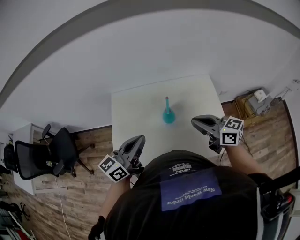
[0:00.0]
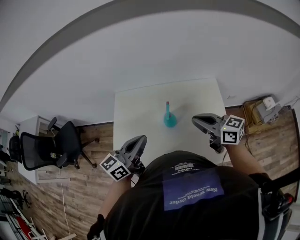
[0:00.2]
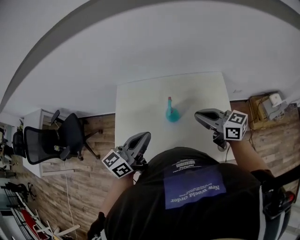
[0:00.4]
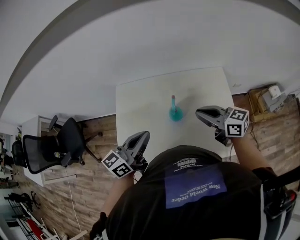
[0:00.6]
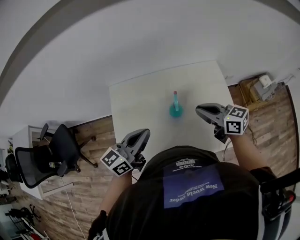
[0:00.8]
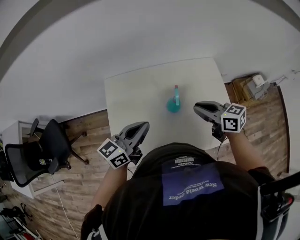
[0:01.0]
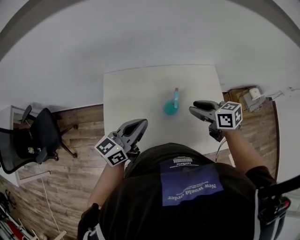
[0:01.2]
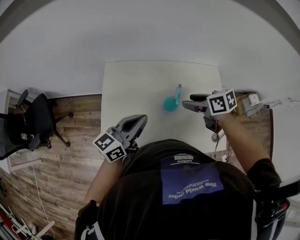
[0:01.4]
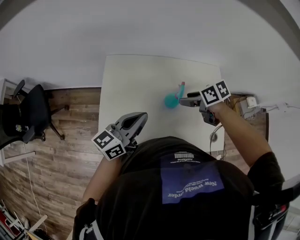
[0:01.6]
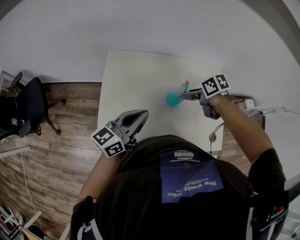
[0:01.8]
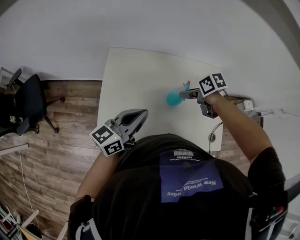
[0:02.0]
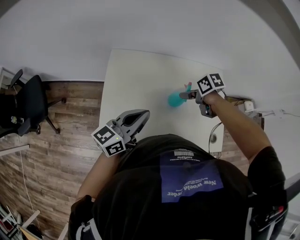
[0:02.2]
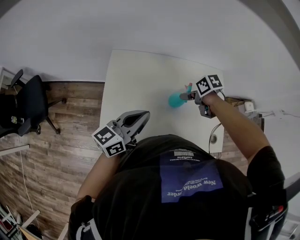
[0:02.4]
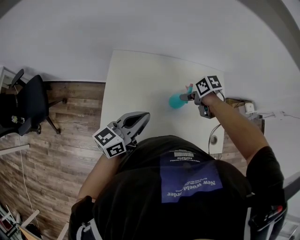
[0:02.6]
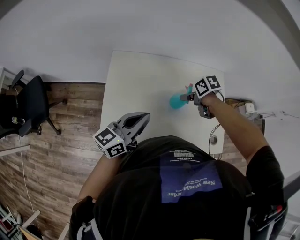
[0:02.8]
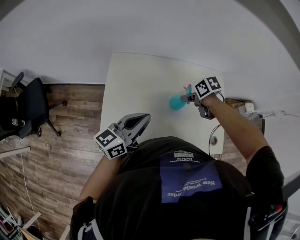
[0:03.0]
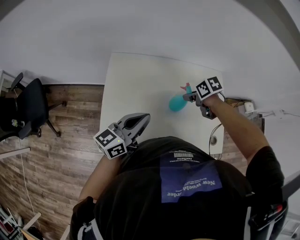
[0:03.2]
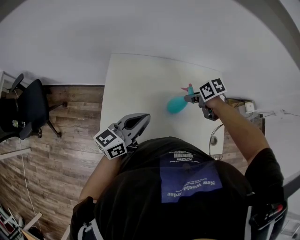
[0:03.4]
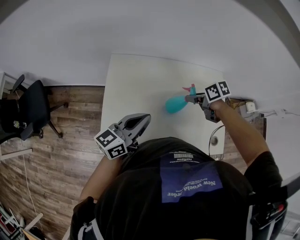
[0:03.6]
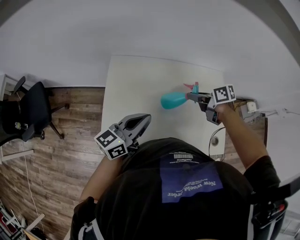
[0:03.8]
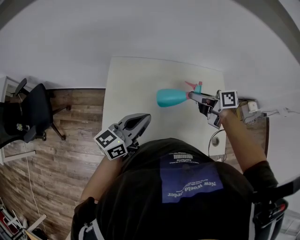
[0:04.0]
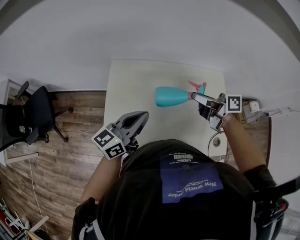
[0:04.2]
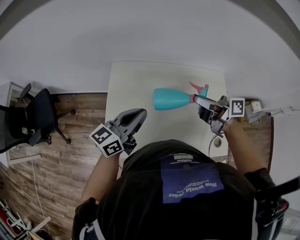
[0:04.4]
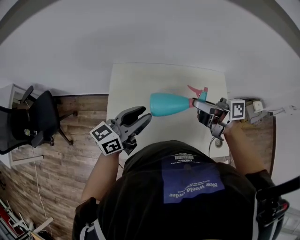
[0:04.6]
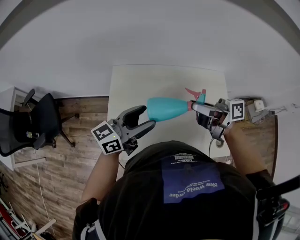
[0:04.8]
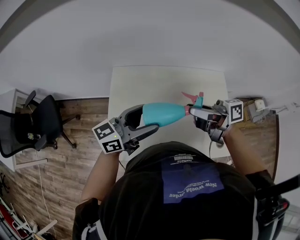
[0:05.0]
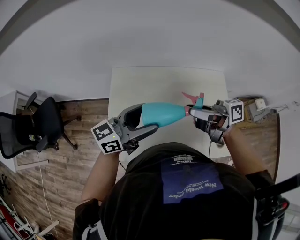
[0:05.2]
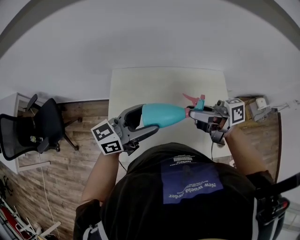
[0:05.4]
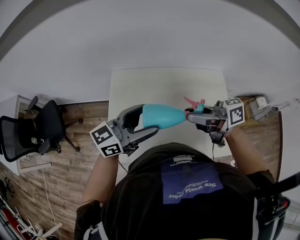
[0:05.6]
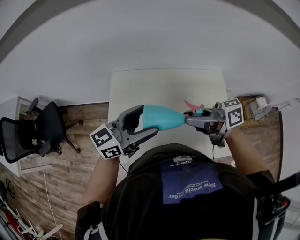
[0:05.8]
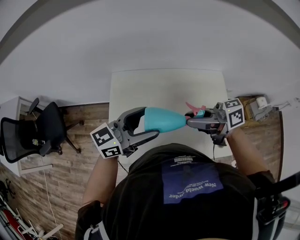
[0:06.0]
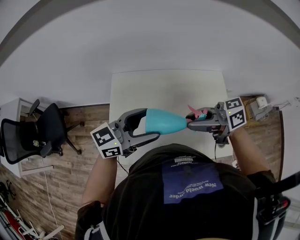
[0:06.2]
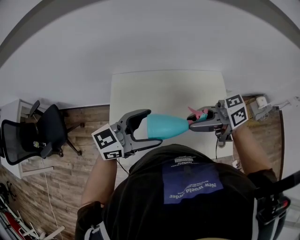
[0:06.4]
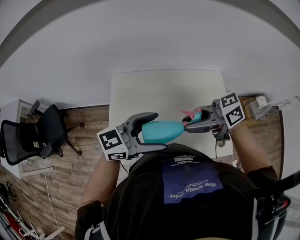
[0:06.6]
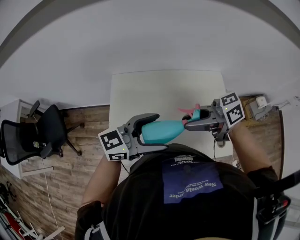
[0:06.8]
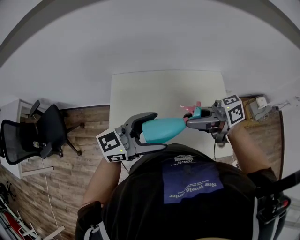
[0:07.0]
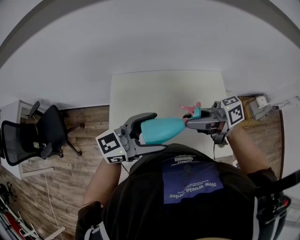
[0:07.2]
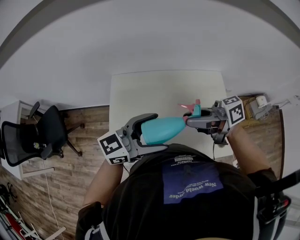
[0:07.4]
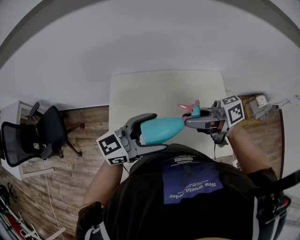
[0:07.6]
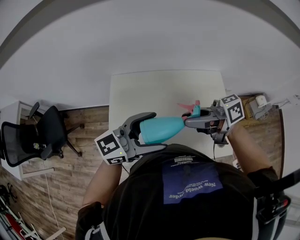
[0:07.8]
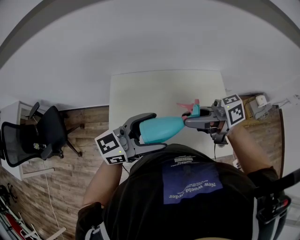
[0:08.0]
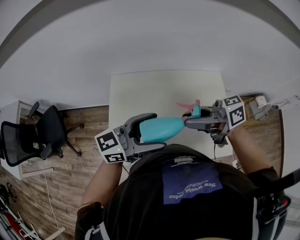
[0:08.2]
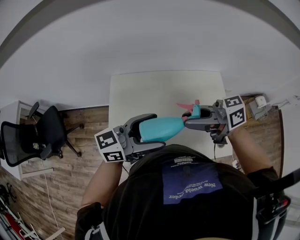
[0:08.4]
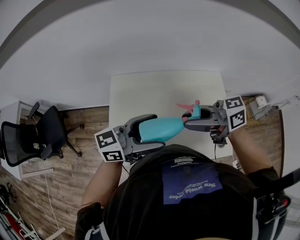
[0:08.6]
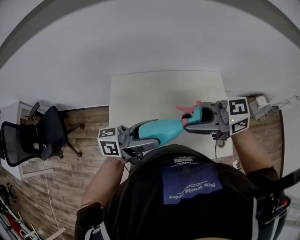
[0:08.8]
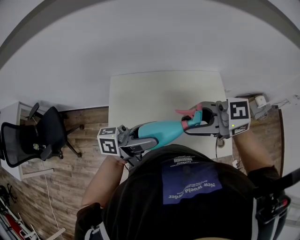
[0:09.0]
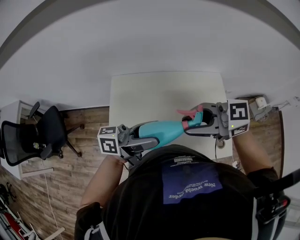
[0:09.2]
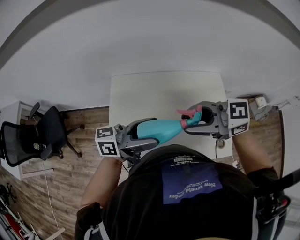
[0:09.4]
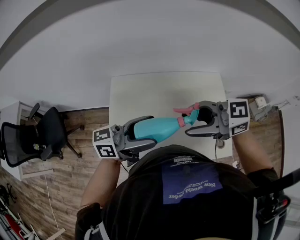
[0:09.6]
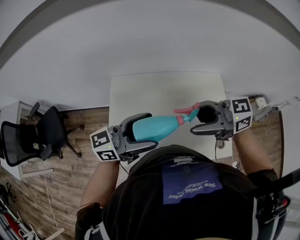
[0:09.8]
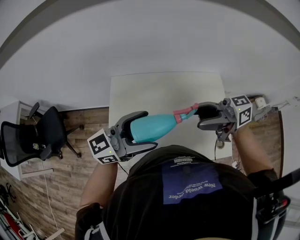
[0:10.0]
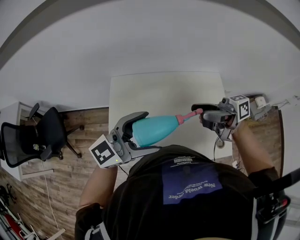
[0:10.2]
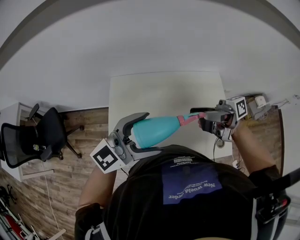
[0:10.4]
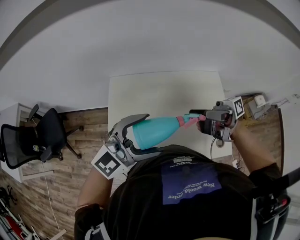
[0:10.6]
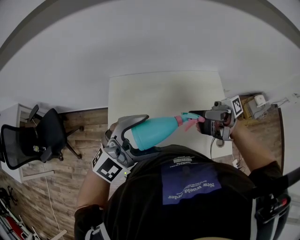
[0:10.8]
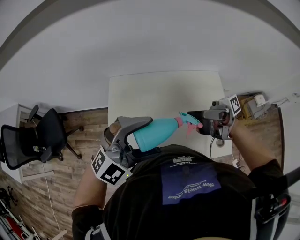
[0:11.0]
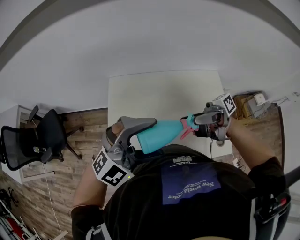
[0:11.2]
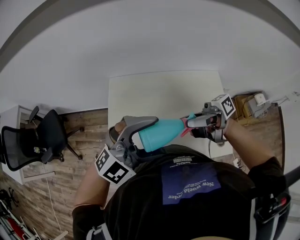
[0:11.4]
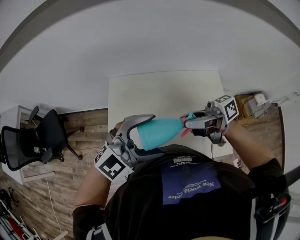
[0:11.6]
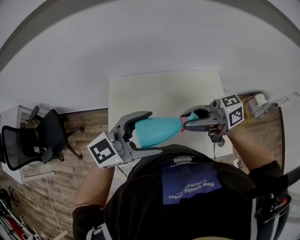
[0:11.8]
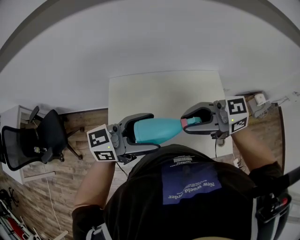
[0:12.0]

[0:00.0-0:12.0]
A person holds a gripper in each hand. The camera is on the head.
0:00.0 to 0:01.6: The left gripper moves forward and downward, approximately 10 cm, while the right gripper travels downward, forward and to the left by roughly 20 cm, points its fingers approximately 40 degrees further downward, and opens.
0:01.6 to 0:03.0: The right gripper shifts approximately 5 cm downward.
0:03.0 to 0:04.4: The right gripper is displaced upward by approximately 20 cm, and angles its fingers upward, by some 60 degrees.
0:04.4 to 0:06.0: The right gripper moves about 10 cm, and rotates some 20 degrees. Meanwhile the left gripper shifts about 5 cm upward, and opens its fingers.
0:06.0 to 0:07.6: The grippers make only small movements.
0:07.6 to 0:09.0: The right gripper shifts by approximately 5 cm, and rotates approximately 40 degrees. The left gripper swivels approximately 40 degrees.
0:09.0 to 0:10.4: The left gripper twists about 60 degrees clockwise, seen from behind, while the right gripper changes place by some 10 cm, twists roughly 50 degrees clockwise, seen from behind, and opens up.
0:10.4 to 0:12.0: The left gripper turns by about 40 degrees, while the right gripper shifts by approximately 10 cm, rotates around the line of its fingers by about 40 degrees, counterclockwise from behind, and closes its fingers.

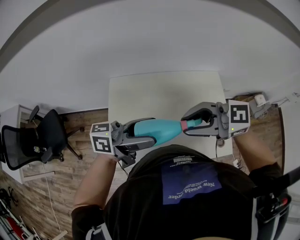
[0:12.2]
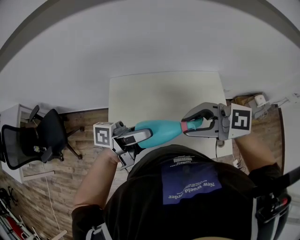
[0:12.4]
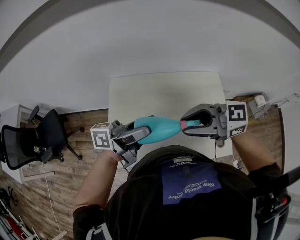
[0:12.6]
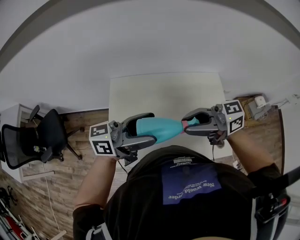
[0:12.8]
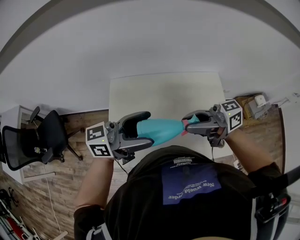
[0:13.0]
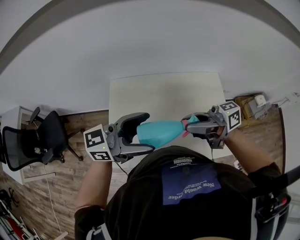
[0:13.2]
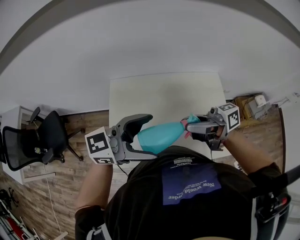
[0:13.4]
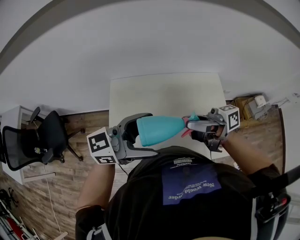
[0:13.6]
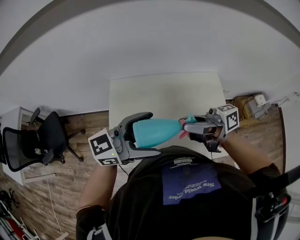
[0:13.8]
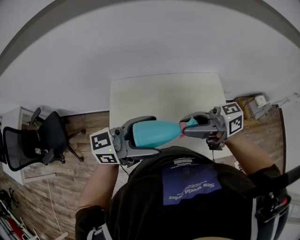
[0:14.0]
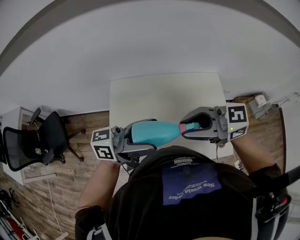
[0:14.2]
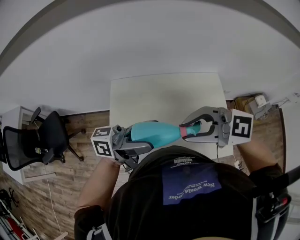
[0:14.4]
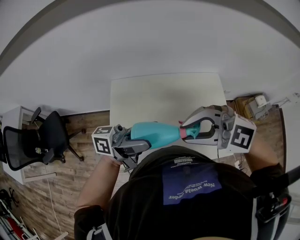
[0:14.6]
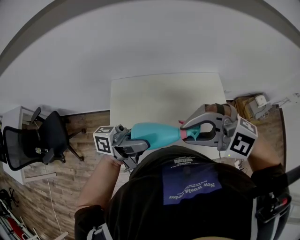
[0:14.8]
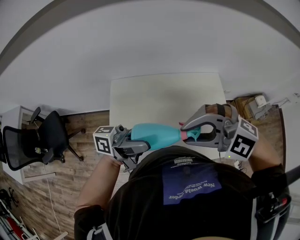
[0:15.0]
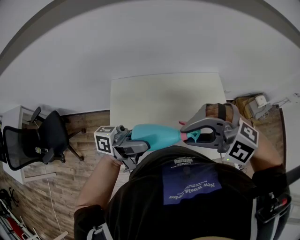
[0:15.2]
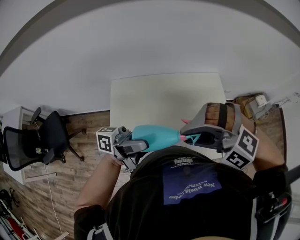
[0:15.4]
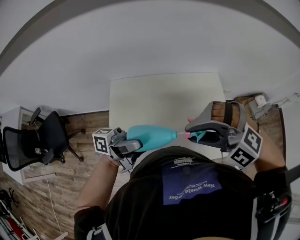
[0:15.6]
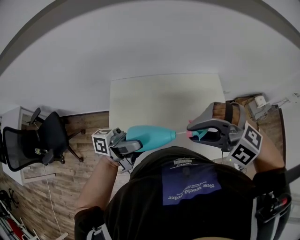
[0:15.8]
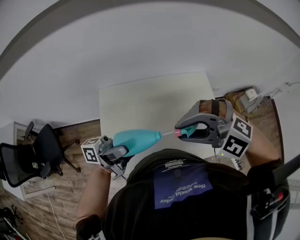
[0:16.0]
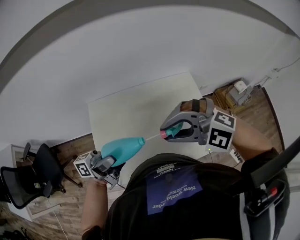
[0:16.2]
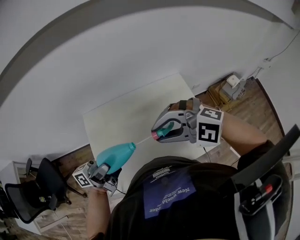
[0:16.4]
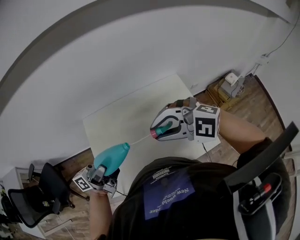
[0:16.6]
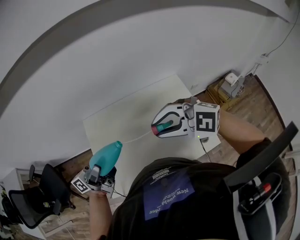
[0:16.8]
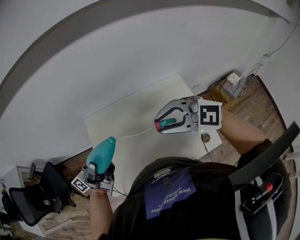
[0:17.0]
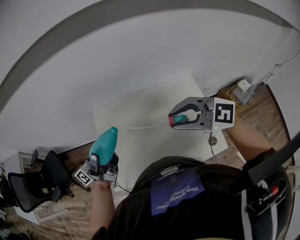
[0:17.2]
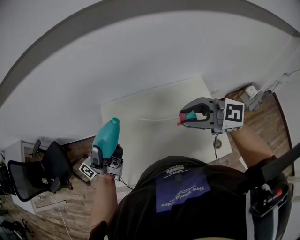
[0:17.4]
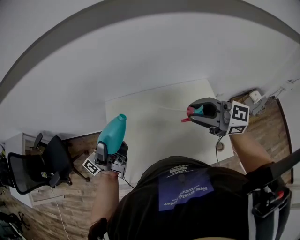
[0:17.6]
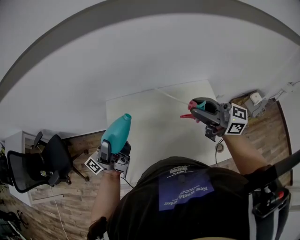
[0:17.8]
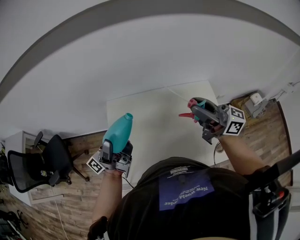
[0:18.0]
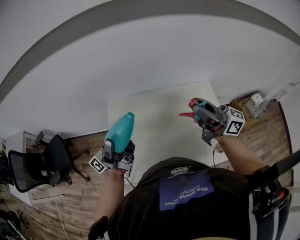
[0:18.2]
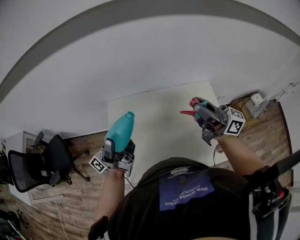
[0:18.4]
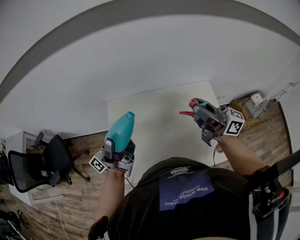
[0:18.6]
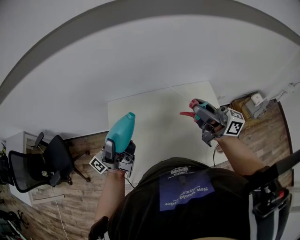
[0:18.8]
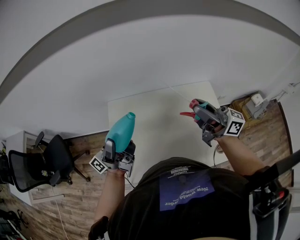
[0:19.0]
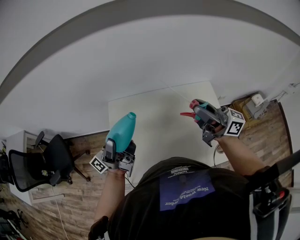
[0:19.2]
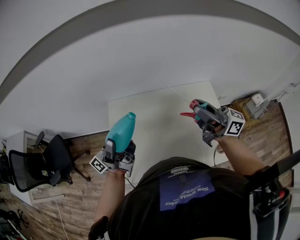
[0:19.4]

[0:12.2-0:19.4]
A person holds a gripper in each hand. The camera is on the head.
0:12.2 to 0:13.6: The left gripper rotates about 30 degrees; the right gripper rolls clockwise, seen from behind, by about 50 degrees.
0:13.6 to 0:15.0: The right gripper moves approximately 5 cm, and twists about 90 degrees counterclockwise, seen from behind, while the left gripper turns by approximately 40 degrees.
0:15.0 to 0:16.6: The left gripper ends up some 5 cm from where it was. Meanwhile the right gripper ends up roughly 10 cm from where it was.
0:16.6 to 0:18.0: The right gripper moves some 10 cm, and points its fingers approximately 50 degrees further upward; the left gripper ends up approximately 10 cm from where it was, and rotates some 30 degrees.
0:18.0 to 0:19.4: The grippers make only small movements.

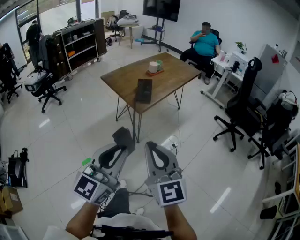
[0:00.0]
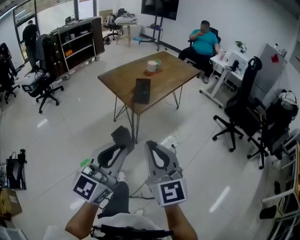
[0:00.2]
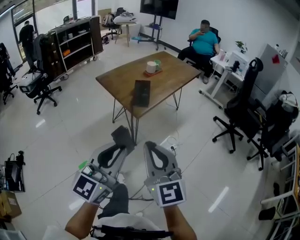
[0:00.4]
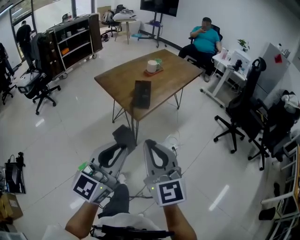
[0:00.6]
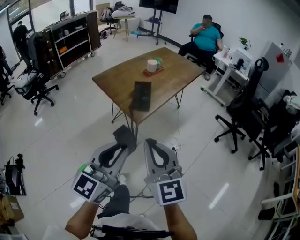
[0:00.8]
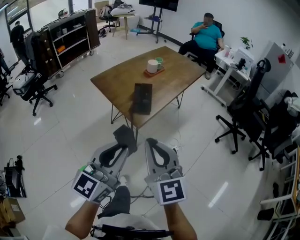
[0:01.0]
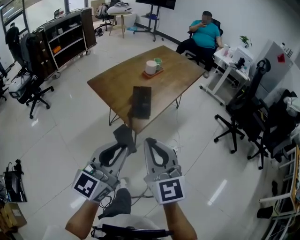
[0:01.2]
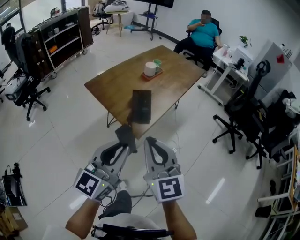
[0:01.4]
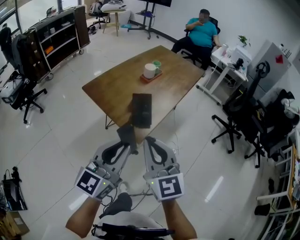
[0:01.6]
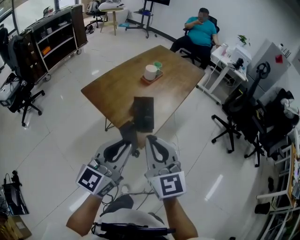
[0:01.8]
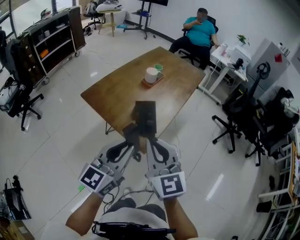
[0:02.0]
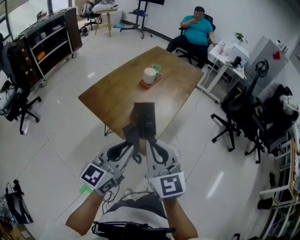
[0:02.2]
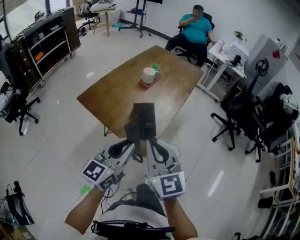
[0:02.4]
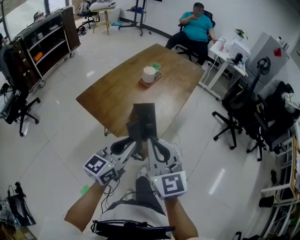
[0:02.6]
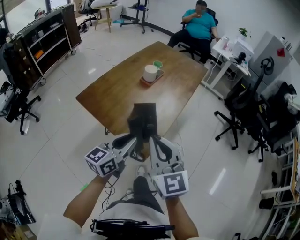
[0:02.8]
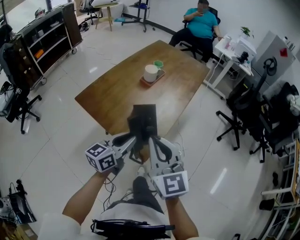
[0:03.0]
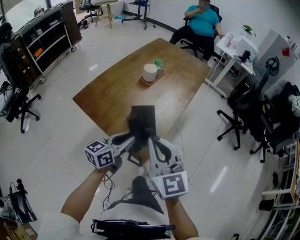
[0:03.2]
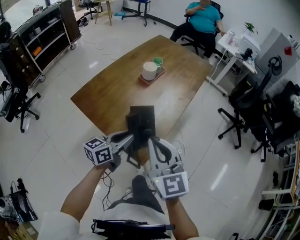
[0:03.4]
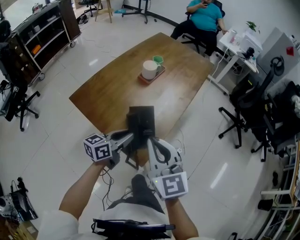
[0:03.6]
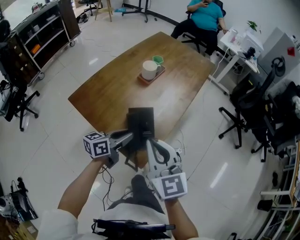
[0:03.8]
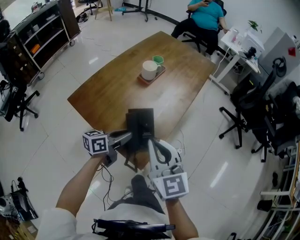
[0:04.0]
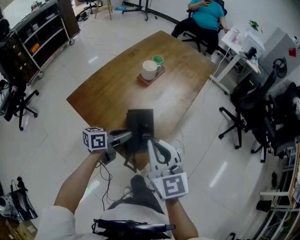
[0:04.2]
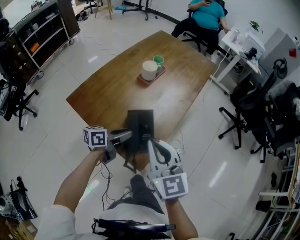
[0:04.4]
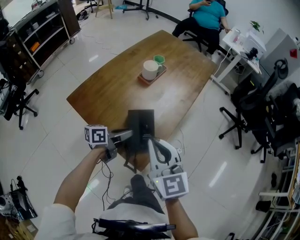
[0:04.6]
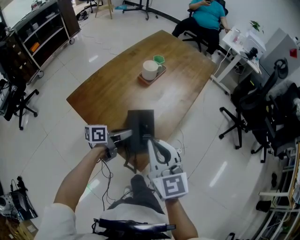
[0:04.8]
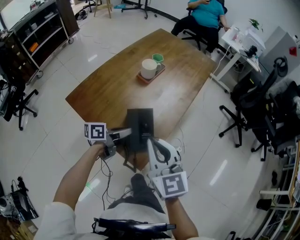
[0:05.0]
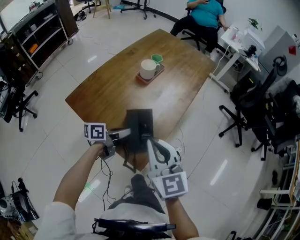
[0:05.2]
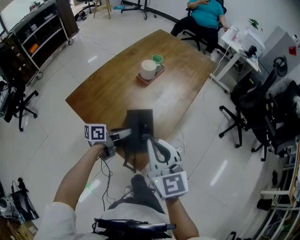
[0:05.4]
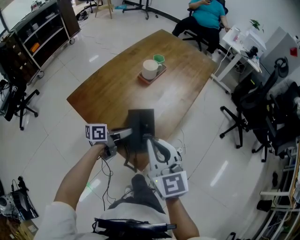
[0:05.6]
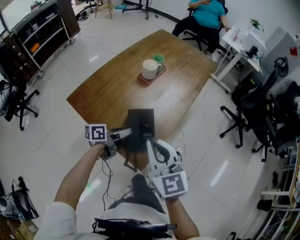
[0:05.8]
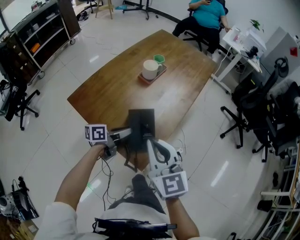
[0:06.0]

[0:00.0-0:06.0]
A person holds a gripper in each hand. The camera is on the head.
0:00.0 to 0:01.6: Both grippers move forward, about 35 cm.
0:01.6 to 0:03.0: The right gripper shifts about 15 cm forward. Meanwhile the left gripper heads forward and downward, covering about 25 cm, and changes its angle by roughly 30 degrees.
0:03.0 to 0:04.4: The right gripper heads forward, covering approximately 10 cm, while the left gripper travels forward and downward by about 15 cm, and changes its angle by approximately 30 degrees.
0:04.4 to 0:06.0: There are only small adjustments of the grippers.
